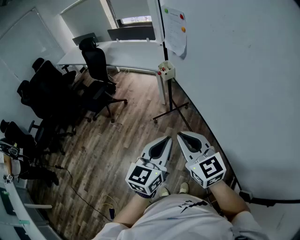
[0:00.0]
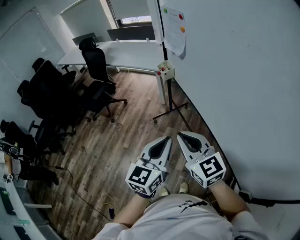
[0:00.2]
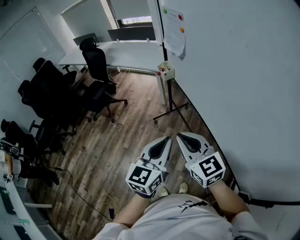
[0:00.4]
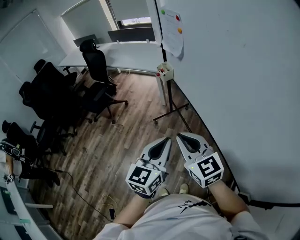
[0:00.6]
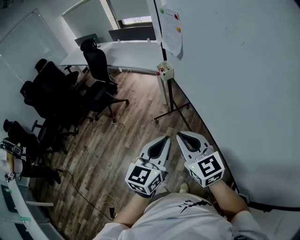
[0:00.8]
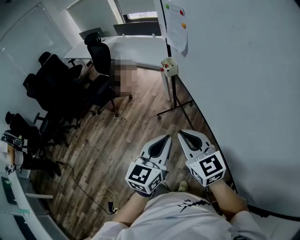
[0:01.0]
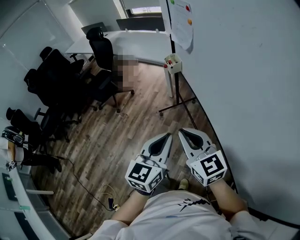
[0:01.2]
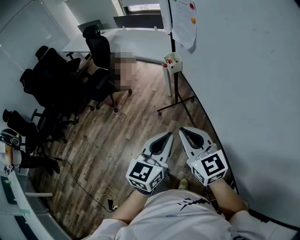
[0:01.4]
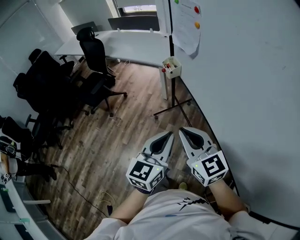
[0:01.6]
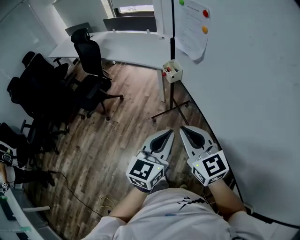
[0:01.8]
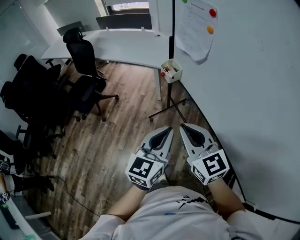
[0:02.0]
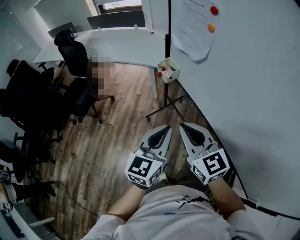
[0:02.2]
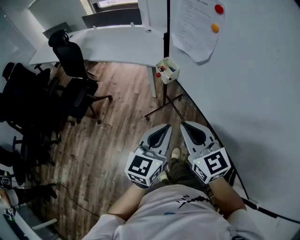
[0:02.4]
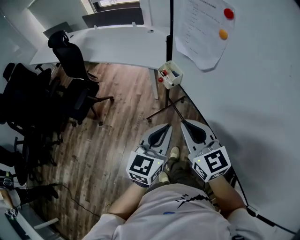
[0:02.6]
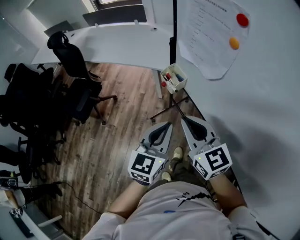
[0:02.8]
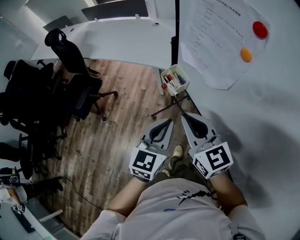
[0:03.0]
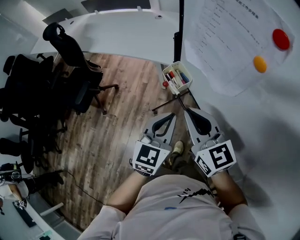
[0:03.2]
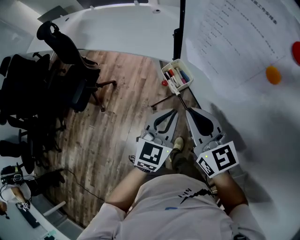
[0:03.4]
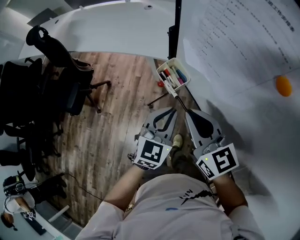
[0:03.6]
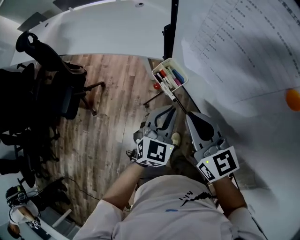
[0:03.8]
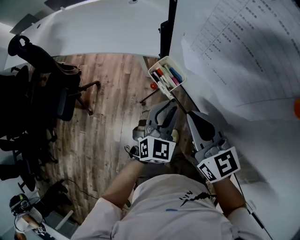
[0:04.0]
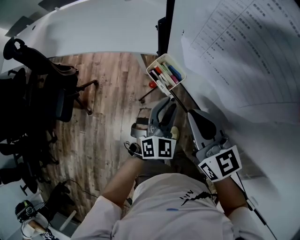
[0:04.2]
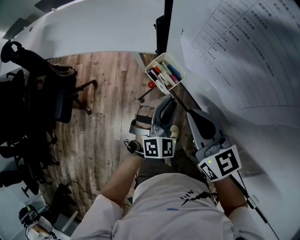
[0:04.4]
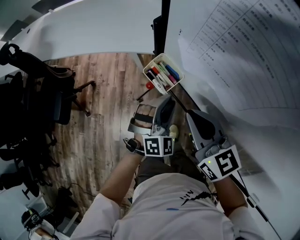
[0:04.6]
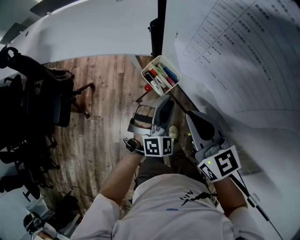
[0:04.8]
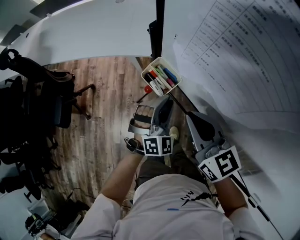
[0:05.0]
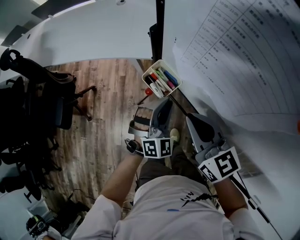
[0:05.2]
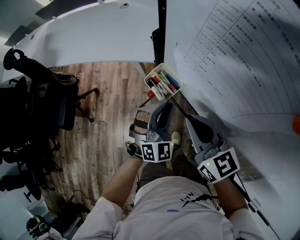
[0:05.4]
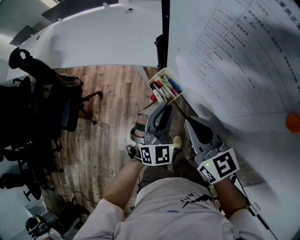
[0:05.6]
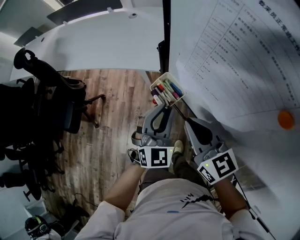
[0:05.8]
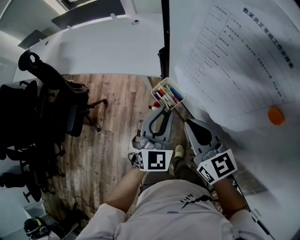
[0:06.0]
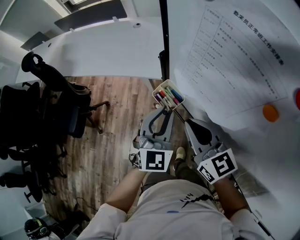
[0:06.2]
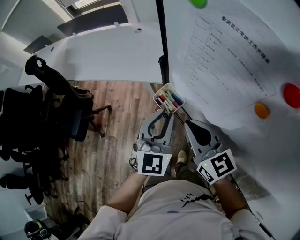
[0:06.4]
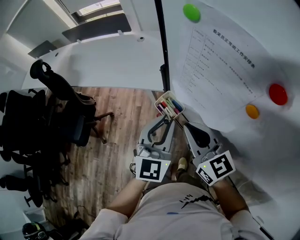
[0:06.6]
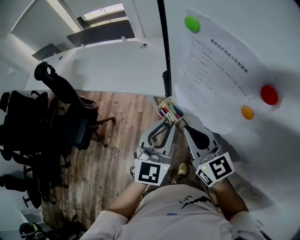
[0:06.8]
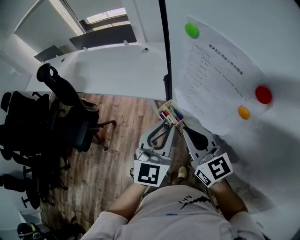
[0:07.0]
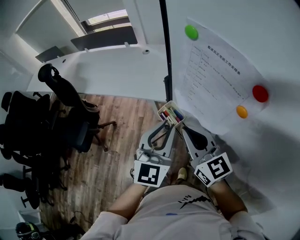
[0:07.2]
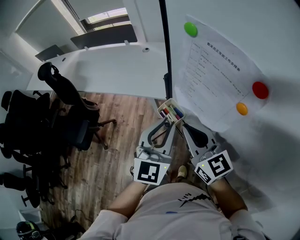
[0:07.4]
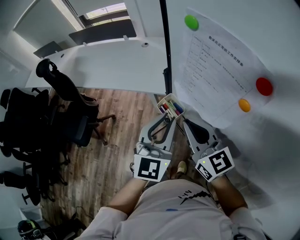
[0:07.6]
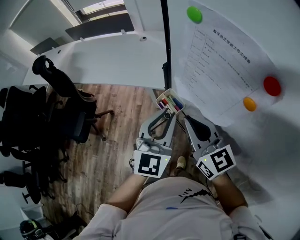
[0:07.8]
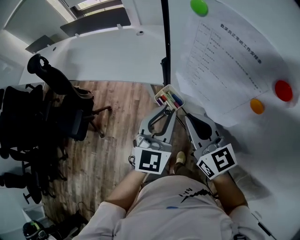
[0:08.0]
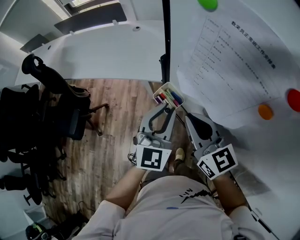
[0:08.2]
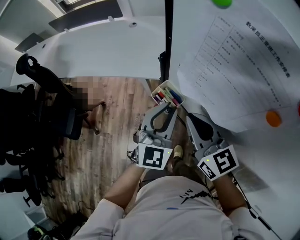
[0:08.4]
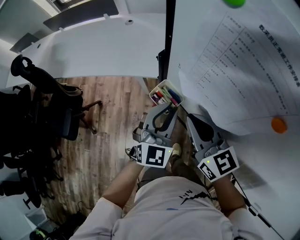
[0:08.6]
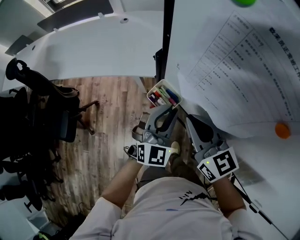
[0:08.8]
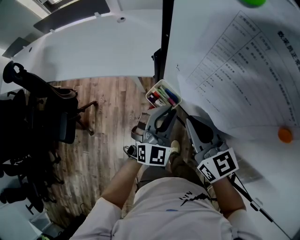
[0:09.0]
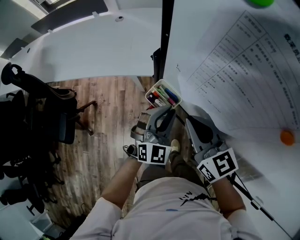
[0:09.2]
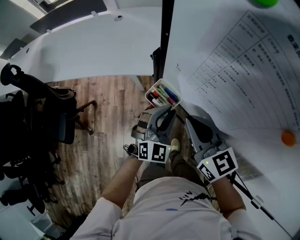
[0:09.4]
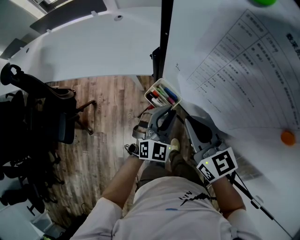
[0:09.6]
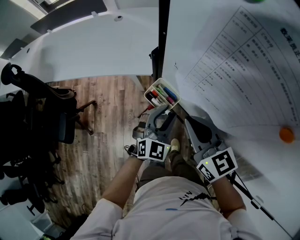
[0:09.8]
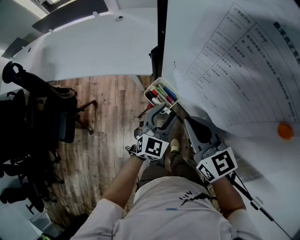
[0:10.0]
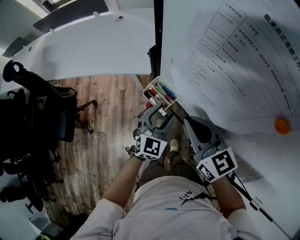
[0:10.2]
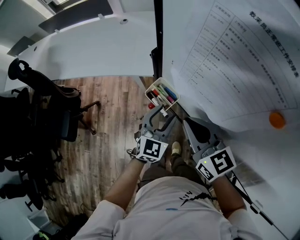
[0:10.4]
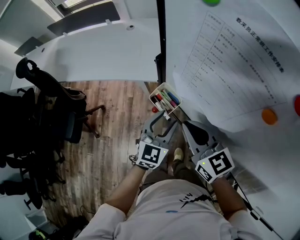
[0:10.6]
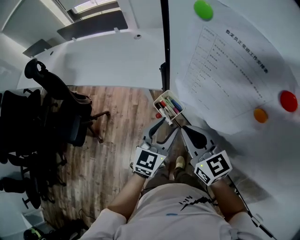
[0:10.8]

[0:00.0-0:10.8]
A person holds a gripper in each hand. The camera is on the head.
0:00.0 to 0:01.6: The grippers both shift forward by some 10 cm.
0:01.6 to 0:03.0: Both grippers move forward, some 30 cm.
0:03.0 to 0:04.6: The left gripper moves downward and forward, roughly 20 cm, rolls clockwise, seen from behind, by some 50 degrees, and opens up. Meanwhile the right gripper is displaced forward and downward by roughly 10 cm.
0:04.6 to 0:06.2: The left gripper goes approximately 15 cm upward, and swivels roughly 40 degrees; the right gripper changes place by some 5 cm.
0:06.2 to 0:07.8: The right gripper goes about 5 cm upward. Meanwhile the left gripper moves upward, some 10 cm.
0:07.8 to 0:09.2: The left gripper travels downward by approximately 15 cm, and turns by about 20 degrees; the right gripper travels downward by approximately 10 cm.
0:09.2 to 0:10.8: The left gripper moves about 5 cm, swivels roughly 30 degrees, and opens.

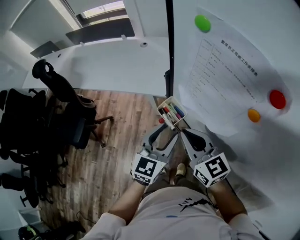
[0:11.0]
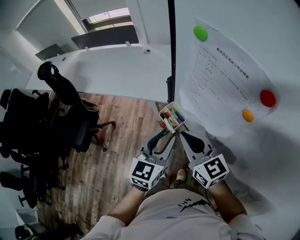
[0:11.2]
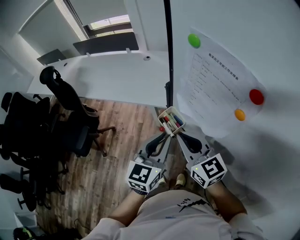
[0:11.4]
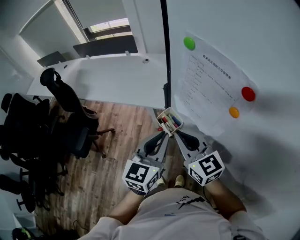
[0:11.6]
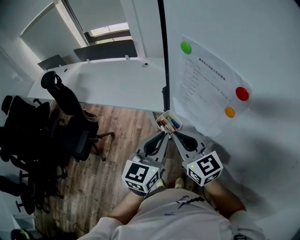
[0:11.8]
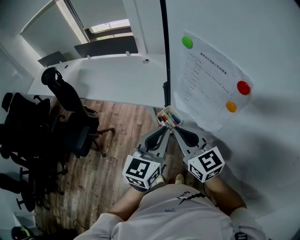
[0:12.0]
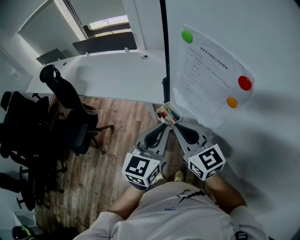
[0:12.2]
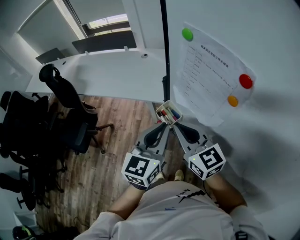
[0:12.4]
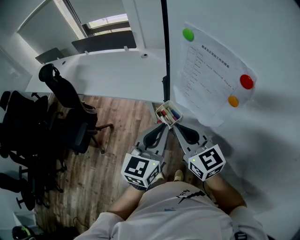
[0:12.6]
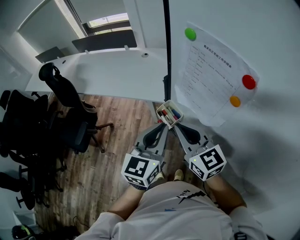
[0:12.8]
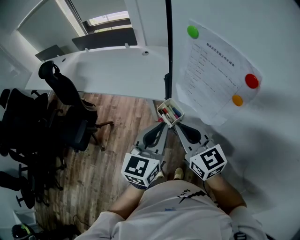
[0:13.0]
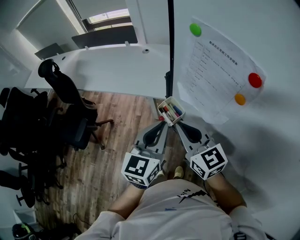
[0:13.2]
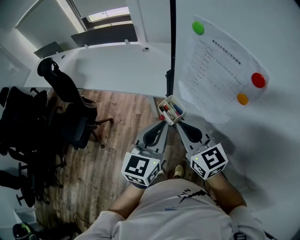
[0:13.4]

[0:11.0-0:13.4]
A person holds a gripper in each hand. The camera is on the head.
0:11.0 to 0:12.2: The right gripper is displaced upward by approximately 5 cm; the left gripper moves upward, about 10 cm, and closes.
0:12.2 to 0:13.4: The grippers make only small movements.

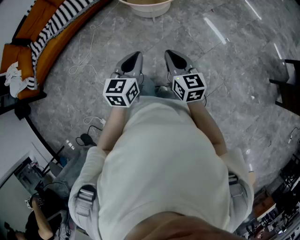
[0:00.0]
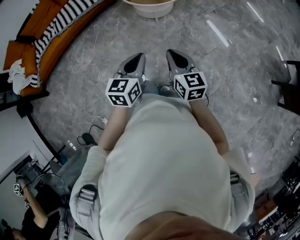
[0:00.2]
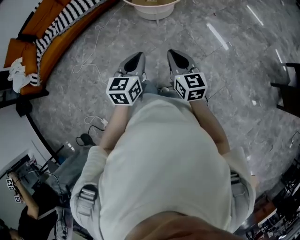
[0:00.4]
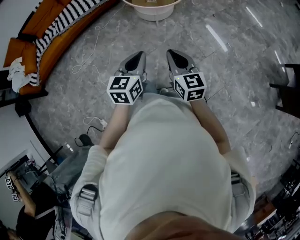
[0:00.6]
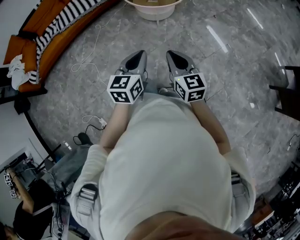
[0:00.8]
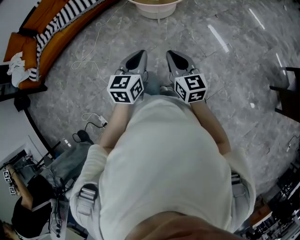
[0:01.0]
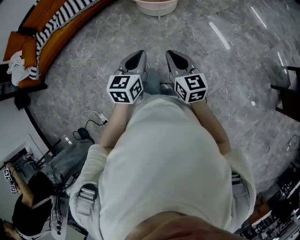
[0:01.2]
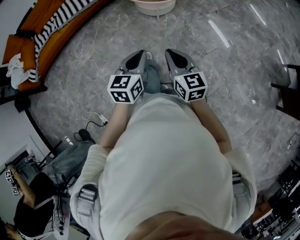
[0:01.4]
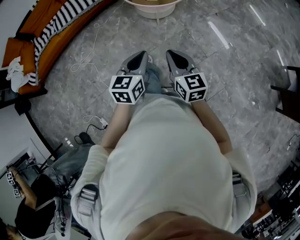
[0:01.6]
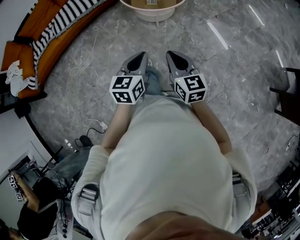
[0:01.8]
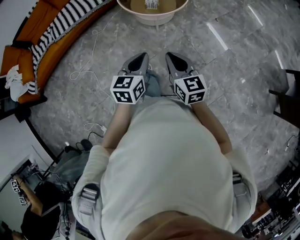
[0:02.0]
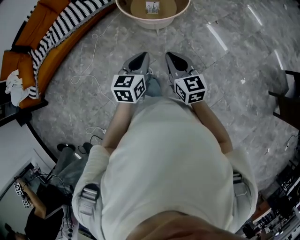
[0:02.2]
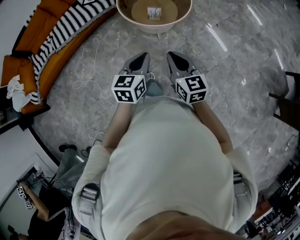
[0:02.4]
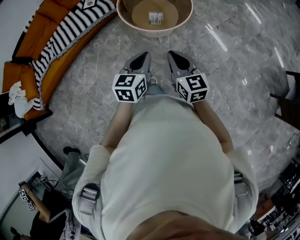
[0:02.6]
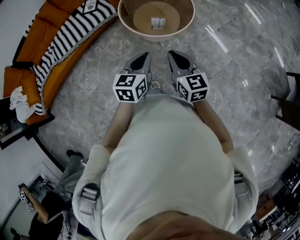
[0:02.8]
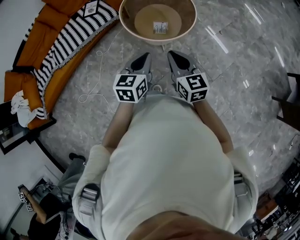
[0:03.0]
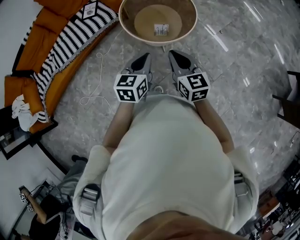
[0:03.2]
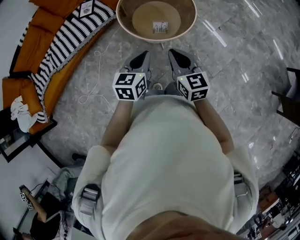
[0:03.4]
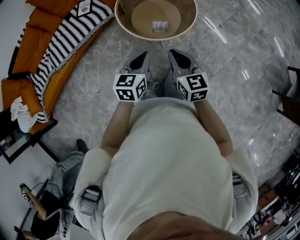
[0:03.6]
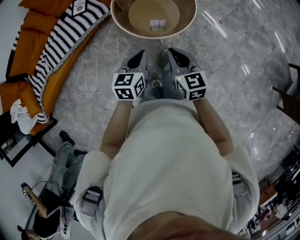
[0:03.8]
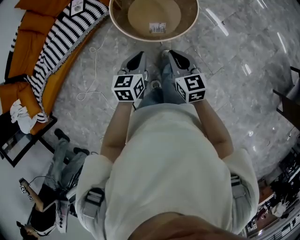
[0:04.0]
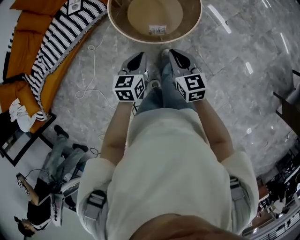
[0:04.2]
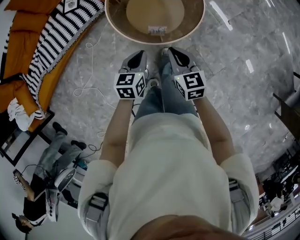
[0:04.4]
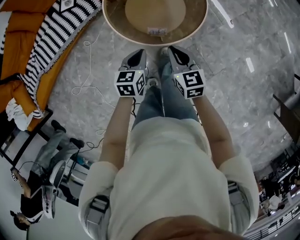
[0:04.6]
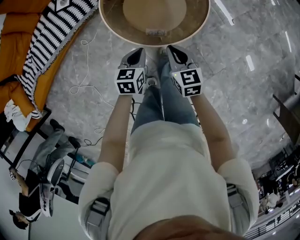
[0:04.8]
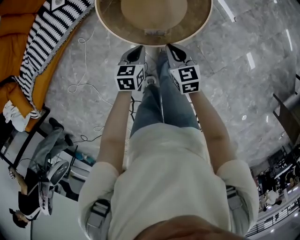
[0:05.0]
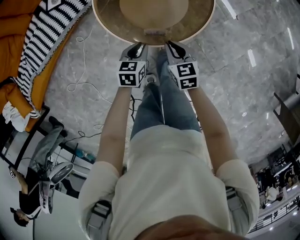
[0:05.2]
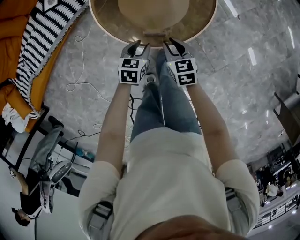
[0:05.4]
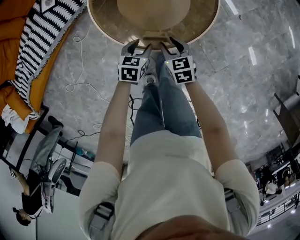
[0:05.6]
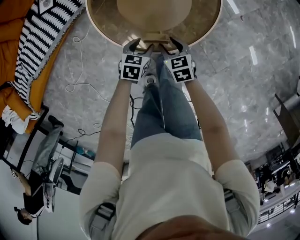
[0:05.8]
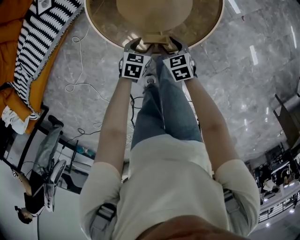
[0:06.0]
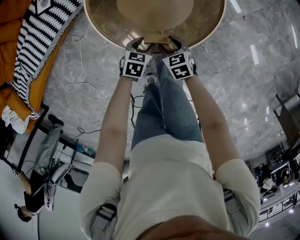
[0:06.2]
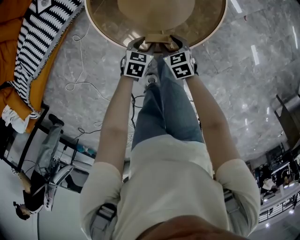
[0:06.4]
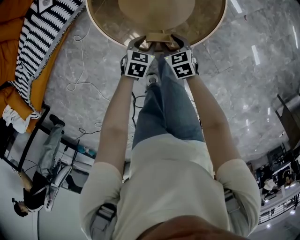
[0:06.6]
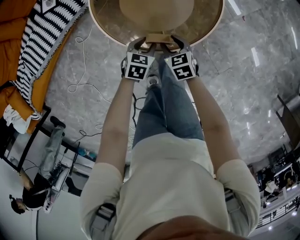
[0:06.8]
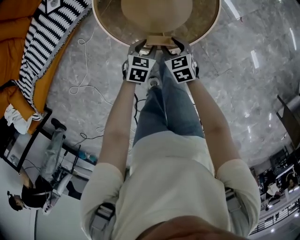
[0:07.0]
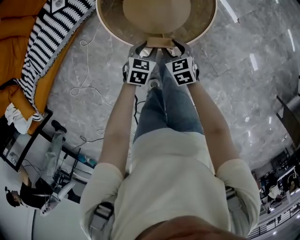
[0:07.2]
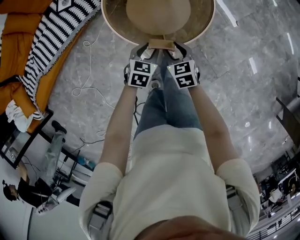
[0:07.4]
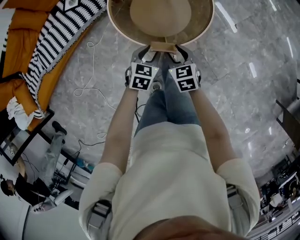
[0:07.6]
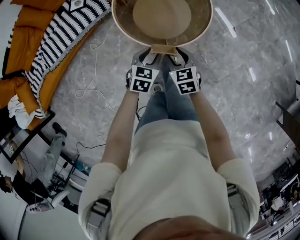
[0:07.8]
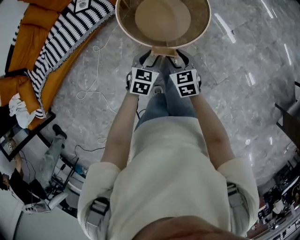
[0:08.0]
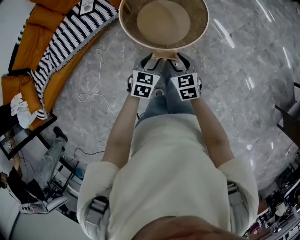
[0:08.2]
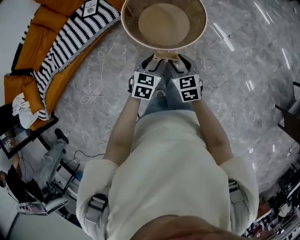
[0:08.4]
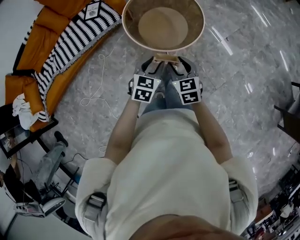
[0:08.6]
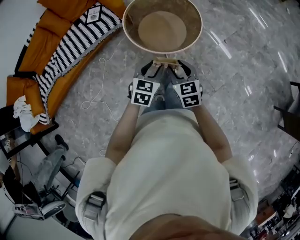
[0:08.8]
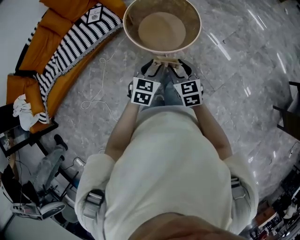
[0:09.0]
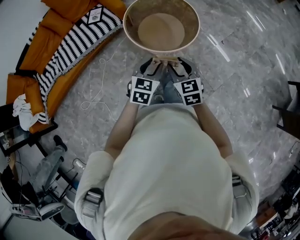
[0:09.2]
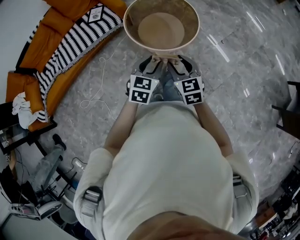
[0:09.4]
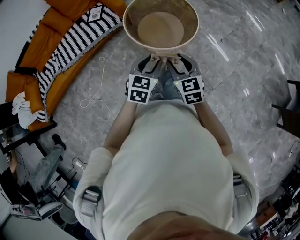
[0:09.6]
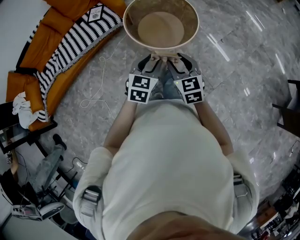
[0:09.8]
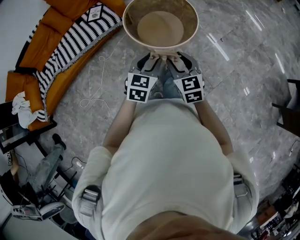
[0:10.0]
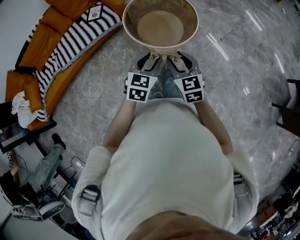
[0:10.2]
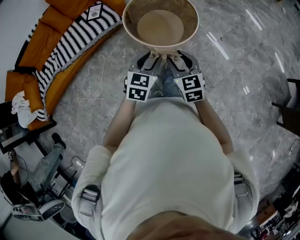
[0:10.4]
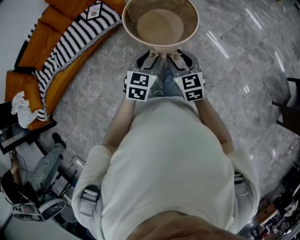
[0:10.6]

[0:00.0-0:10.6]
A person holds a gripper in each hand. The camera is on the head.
0:00.0 to 0:01.6: The grippers move only a little.
0:01.6 to 0:03.0: Both grippers move forward, some 30 cm.
0:03.0 to 0:04.6: The right gripper heads forward and downward, covering roughly 25 cm; the left gripper shifts about 25 cm downward and forward.
0:04.6 to 0:06.0: The two grippers go approximately 25 cm downward. The left gripper turns by about 20 degrees, and opens. The right gripper rotates about 20 degrees, and opens.
0:06.0 to 0:07.6: The left gripper goes about 15 cm upward. Meanwhile the right gripper heads upward and backward, covering some 15 cm.
0:07.6 to 0:09.0: Both grippers move upward and backward, some 25 cm.
0:09.0 to 0:10.6: The grippers both shift upward by roughly 5 cm.
